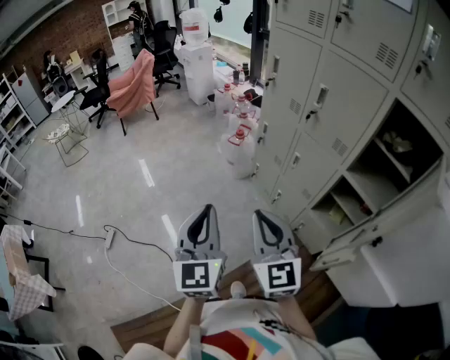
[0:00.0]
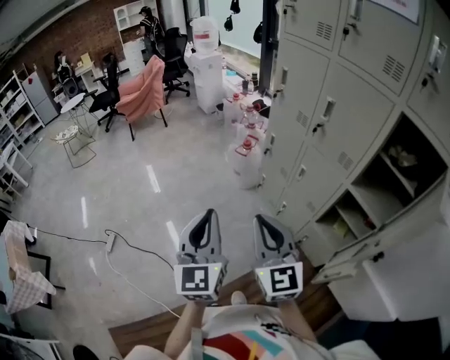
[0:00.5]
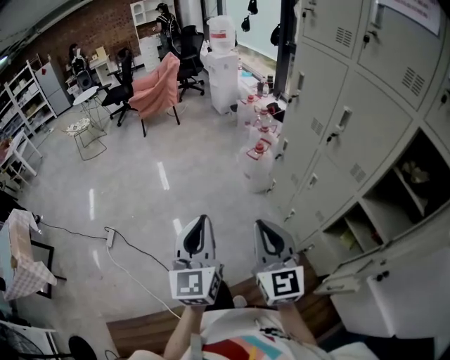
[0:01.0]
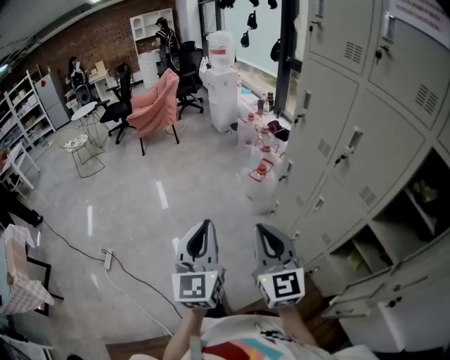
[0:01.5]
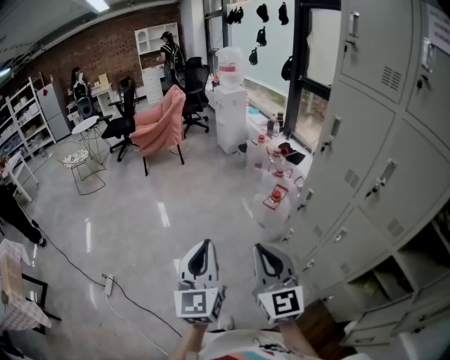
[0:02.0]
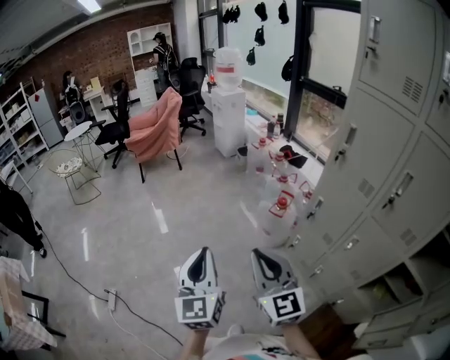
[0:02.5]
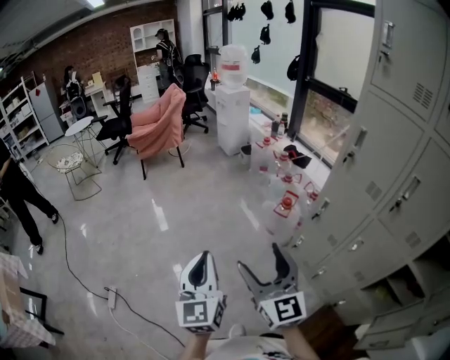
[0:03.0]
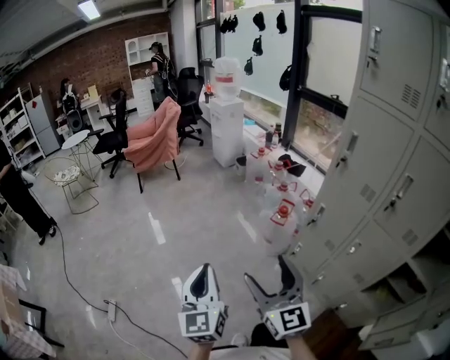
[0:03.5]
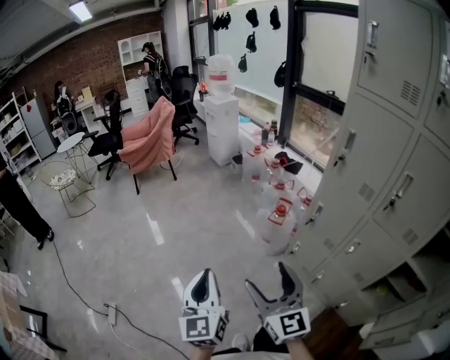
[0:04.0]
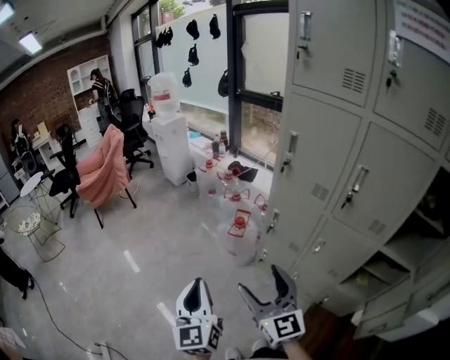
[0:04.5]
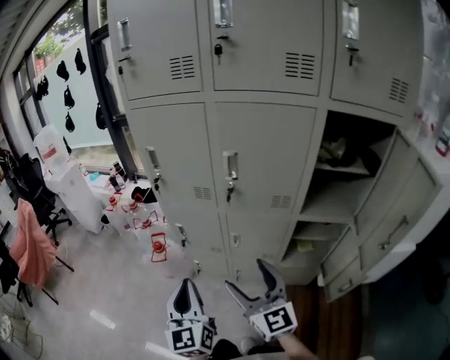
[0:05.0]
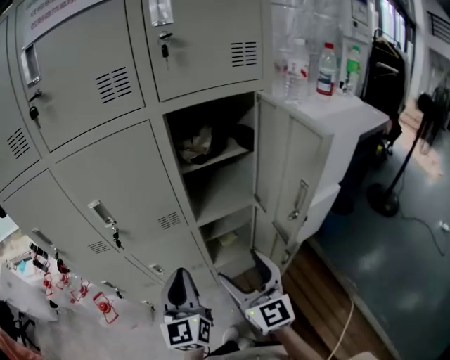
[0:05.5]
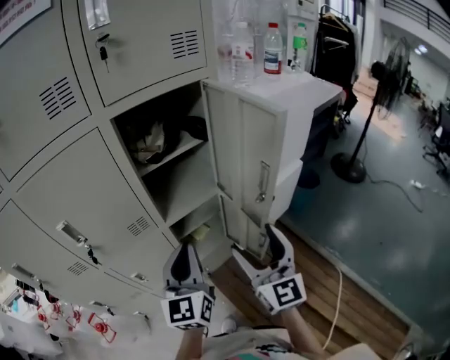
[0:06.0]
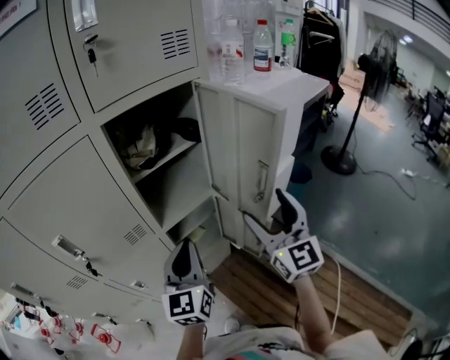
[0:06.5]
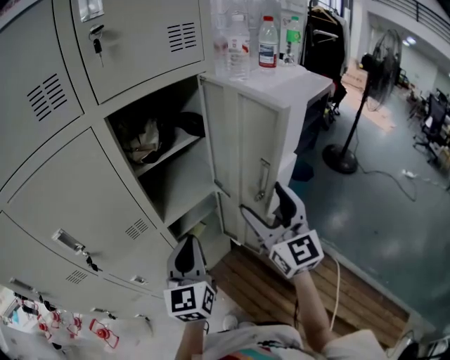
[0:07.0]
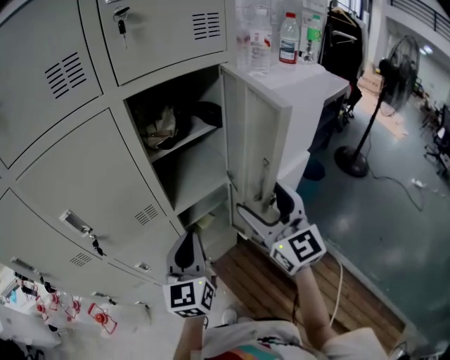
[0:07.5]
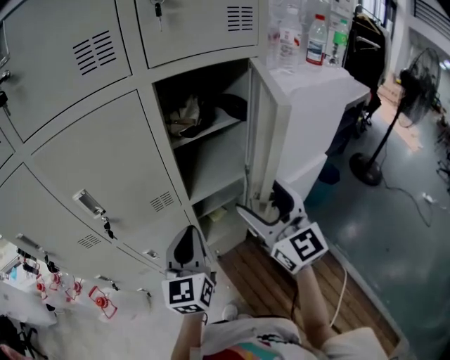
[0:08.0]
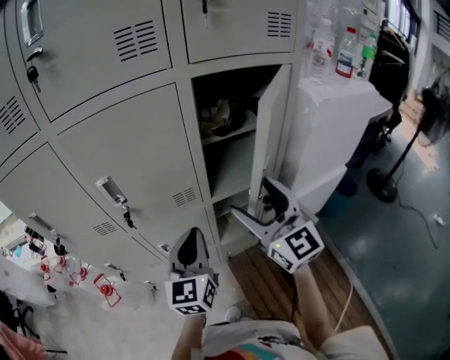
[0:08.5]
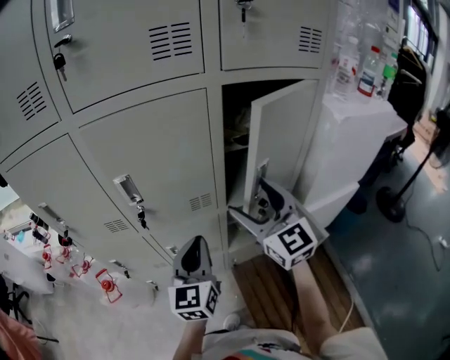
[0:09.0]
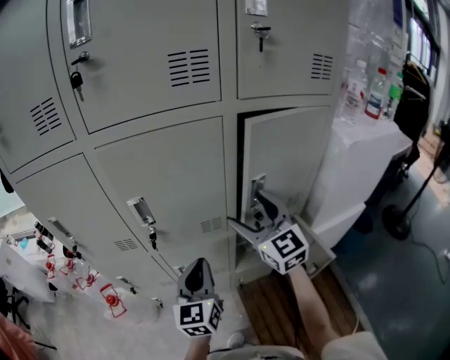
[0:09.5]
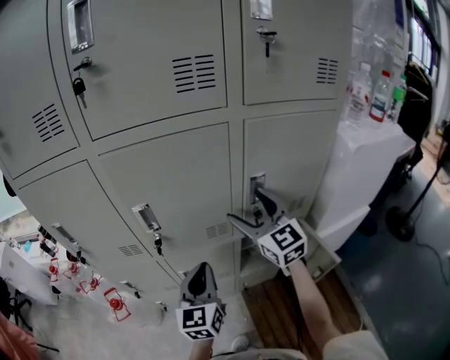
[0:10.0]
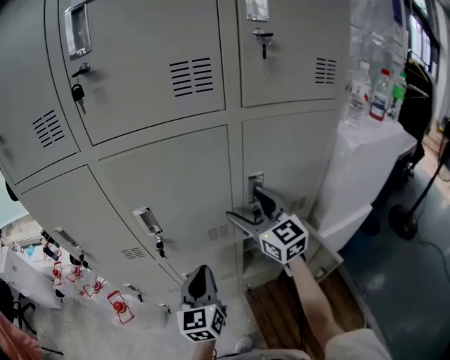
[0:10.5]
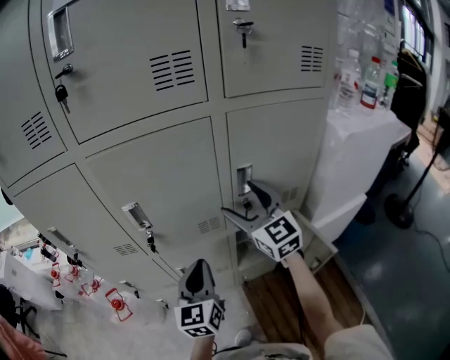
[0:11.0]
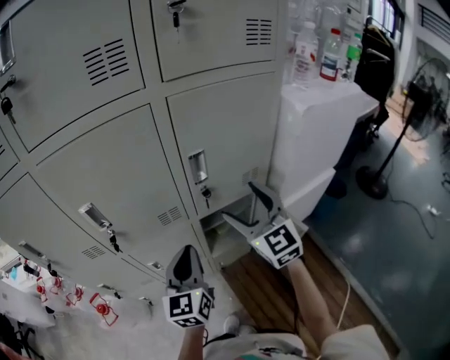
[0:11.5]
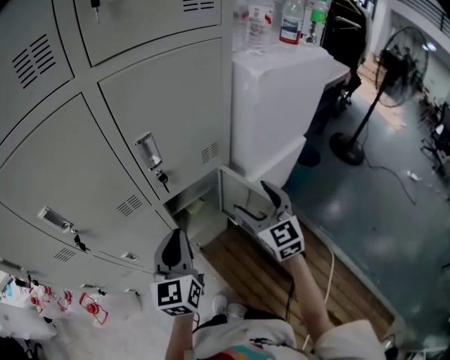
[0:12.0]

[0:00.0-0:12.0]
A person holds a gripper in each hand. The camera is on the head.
0:00.0 to 0:02.0: The two grippers go roughly 25 cm forward and to the left.
0:02.0 to 0:04.0: The right gripper heads forward and to the left, covering roughly 10 cm, and opens its fingers. Meanwhile the left gripper is displaced forward, to the left and downward by roughly 10 cm.
0:04.0 to 0:06.0: The two grippers travel together, roughly 60 cm. The right gripper turns by roughly 90 degrees. The left gripper changes its angle by approximately 100 degrees.
0:06.0 to 0:08.0: The right gripper is displaced forward, to the left and upward by some 10 cm; the left gripper shifts approximately 5 cm to the left.
0:08.0 to 0:10.0: The left gripper heads to the left, covering roughly 10 cm; the right gripper is displaced forward and to the left by some 20 cm.
0:10.0 to 0:12.0: The left gripper is displaced to the right by approximately 15 cm. The right gripper heads to the right, backward and downward, covering roughly 30 cm, and changes its angle by about 30 degrees.

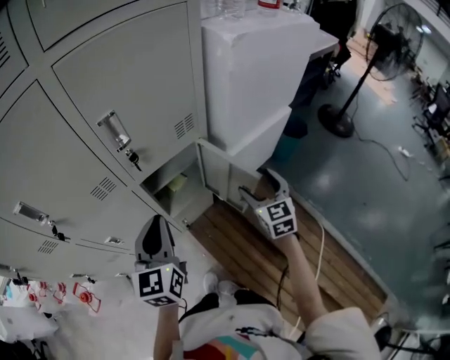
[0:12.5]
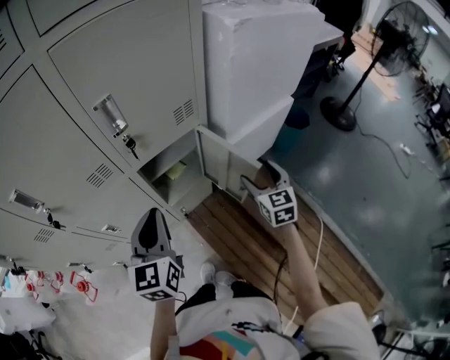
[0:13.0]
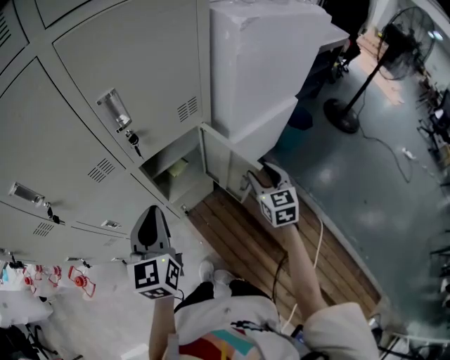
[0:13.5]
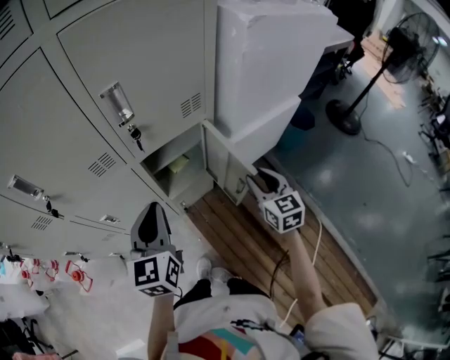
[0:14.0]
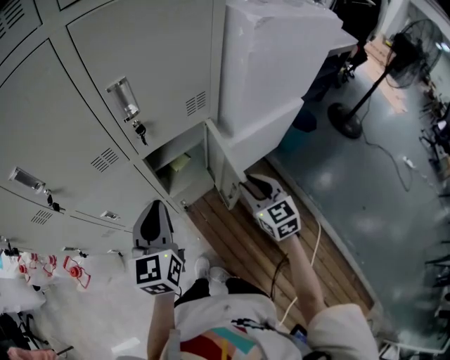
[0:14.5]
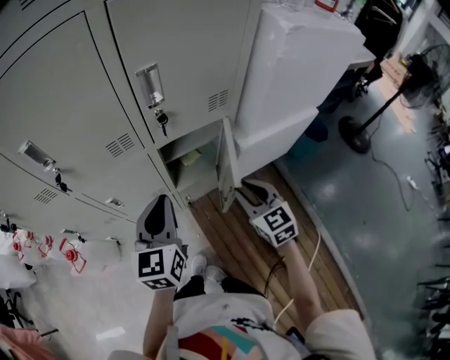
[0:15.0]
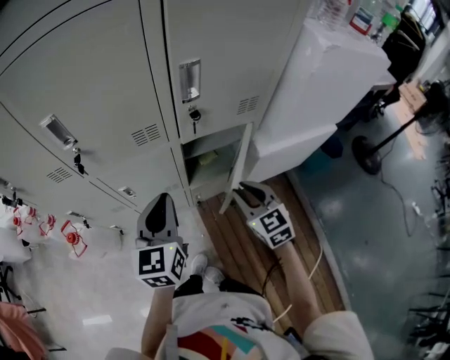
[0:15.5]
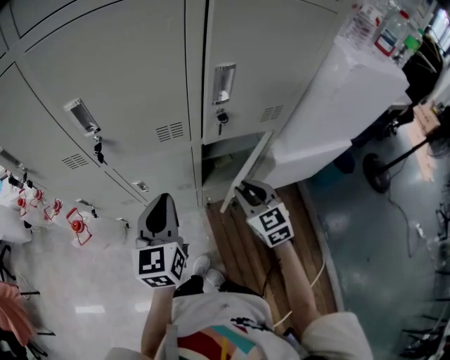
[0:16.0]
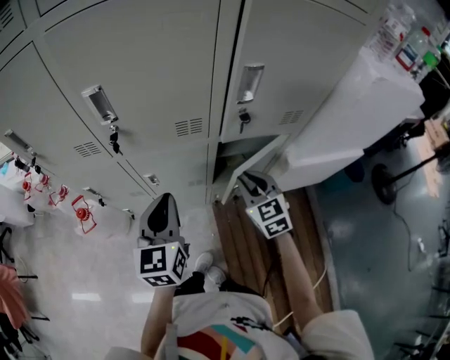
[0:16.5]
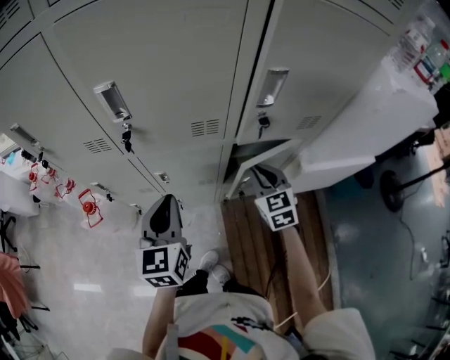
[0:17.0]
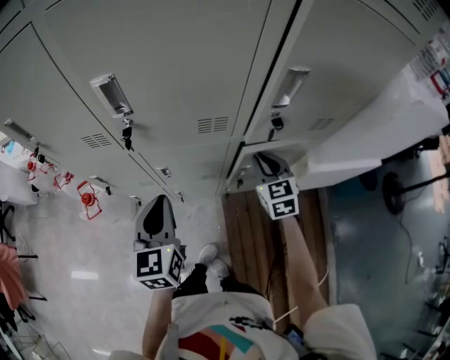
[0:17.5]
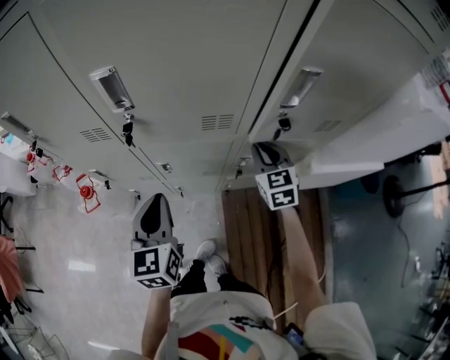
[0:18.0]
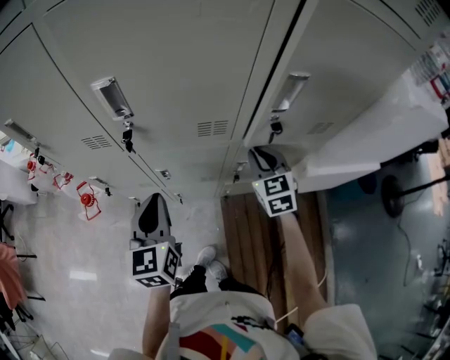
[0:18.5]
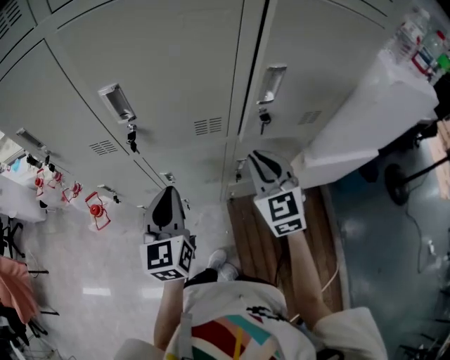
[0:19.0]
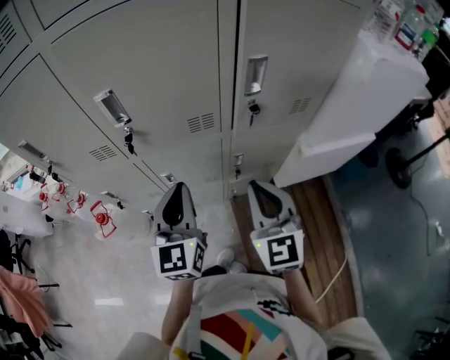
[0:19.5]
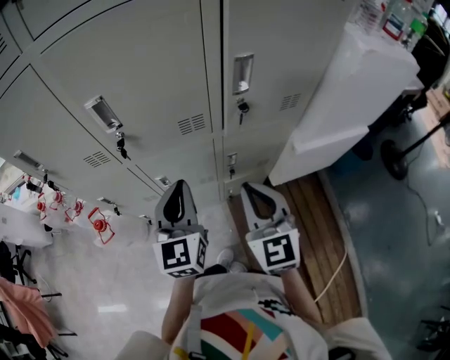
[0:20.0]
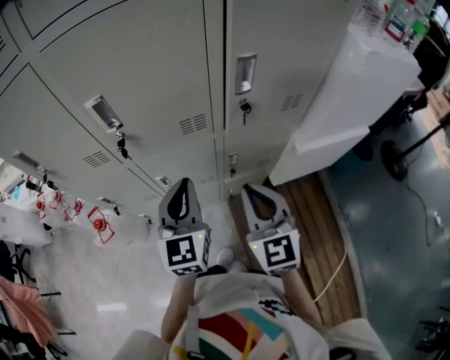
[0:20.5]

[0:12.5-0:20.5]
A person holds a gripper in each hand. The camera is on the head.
0:12.5 to 0:14.5: The right gripper goes approximately 5 cm to the left, and closes.
0:14.5 to 0:16.5: The left gripper goes some 15 cm to the left; the right gripper is displaced to the left and forward by approximately 20 cm, and turns by about 20 degrees.
0:16.5 to 0:18.5: The left gripper is displaced to the left by approximately 5 cm. Meanwhile the right gripper travels forward by about 10 cm.
0:18.5 to 0:20.5: The right gripper travels backward and upward by roughly 20 cm; the left gripper heads to the right and upward, covering some 10 cm.

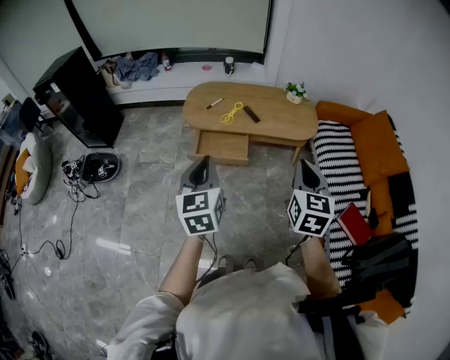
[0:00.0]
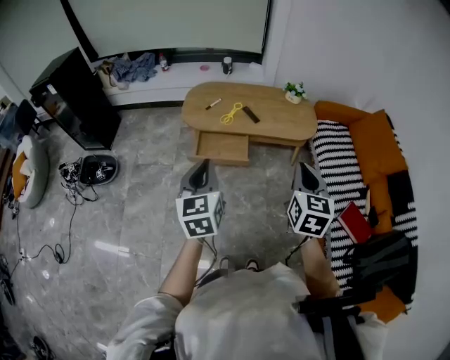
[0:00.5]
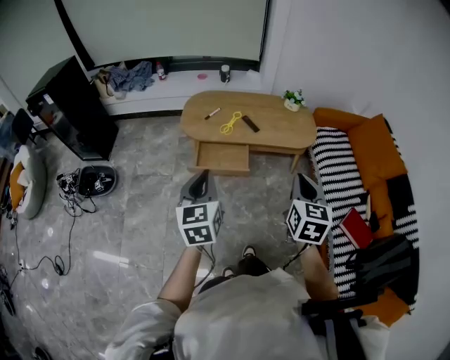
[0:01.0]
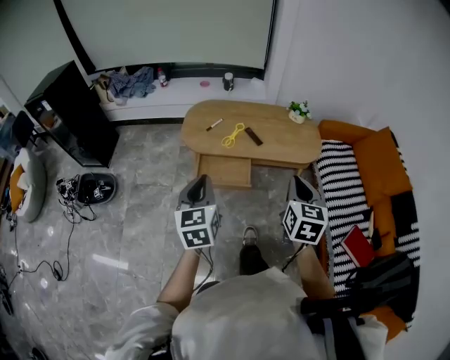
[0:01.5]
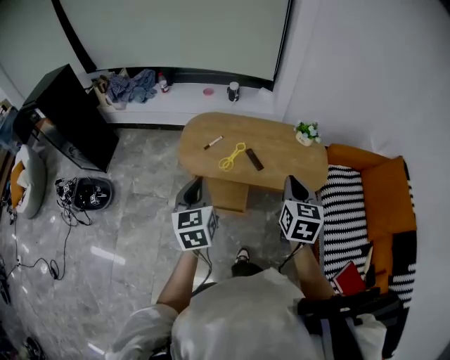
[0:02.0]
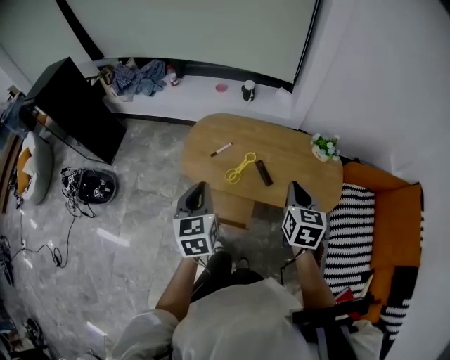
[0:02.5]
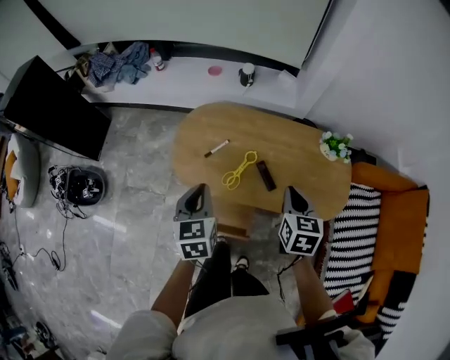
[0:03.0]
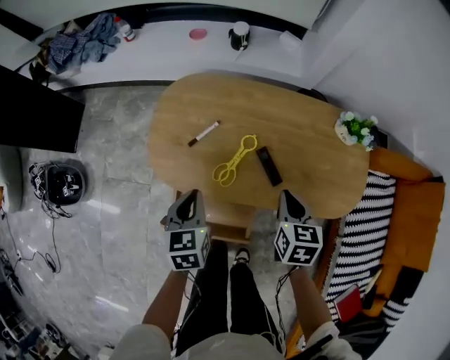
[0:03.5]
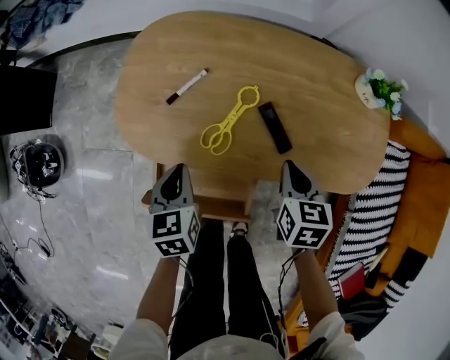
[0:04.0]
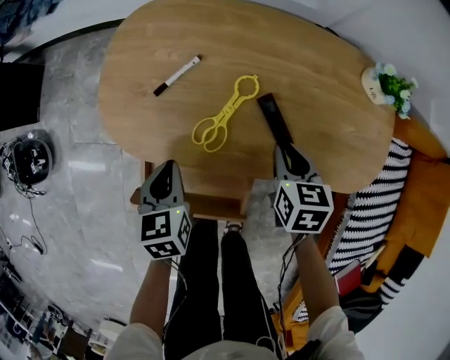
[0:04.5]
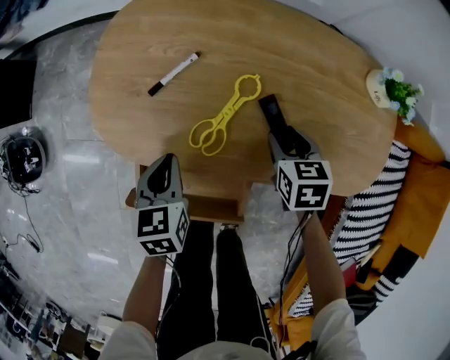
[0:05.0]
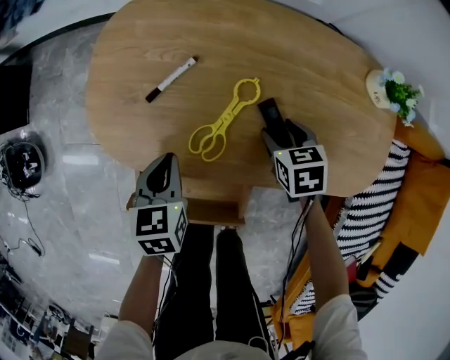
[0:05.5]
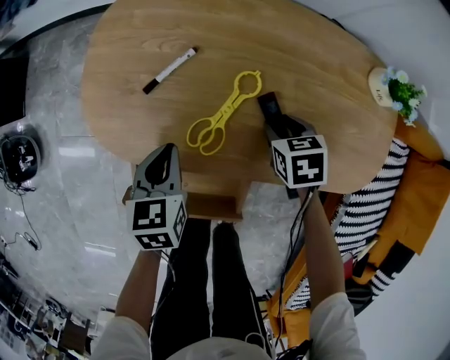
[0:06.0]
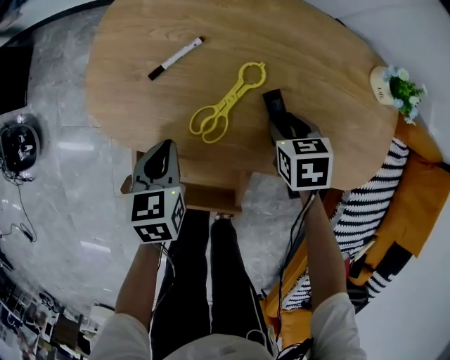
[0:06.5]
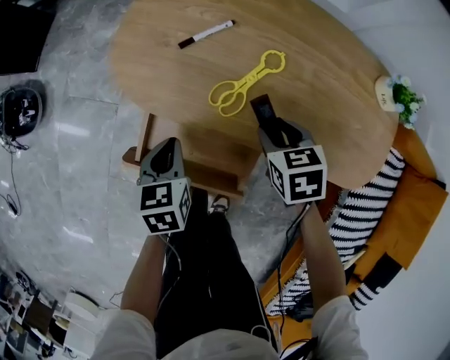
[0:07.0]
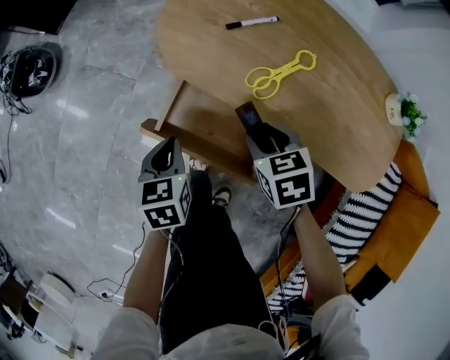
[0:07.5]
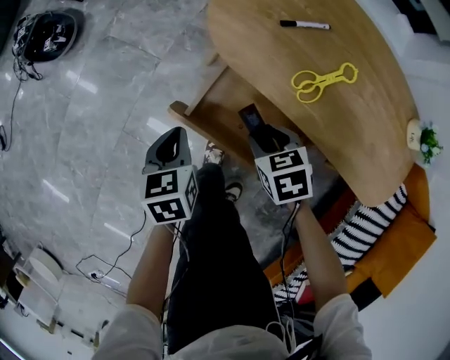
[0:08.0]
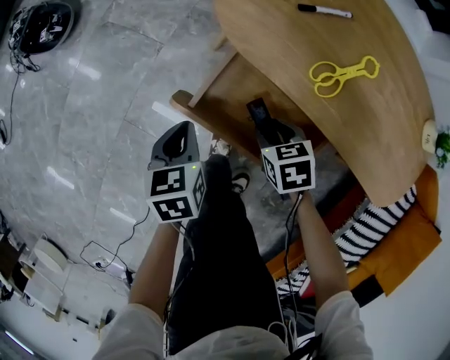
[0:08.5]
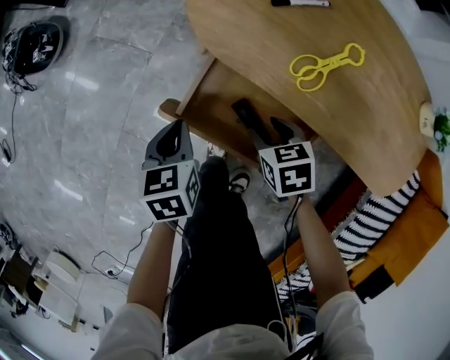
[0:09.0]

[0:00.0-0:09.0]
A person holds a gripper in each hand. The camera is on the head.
0:00.0 to 0:02.0: Both grippers move forward, roughly 30 cm.
0:02.0 to 0:04.5: The grippers both shift downward and forward by approximately 60 cm. The left gripper swivels some 30 degrees. The right gripper changes its angle by some 30 degrees.
0:04.5 to 0:07.0: The left gripper heads backward, covering about 5 cm; the right gripper shifts about 5 cm to the left, travels downward and back again, some 10 cm each way, turns by approximately 30 degrees, and opens up.
0:07.0 to 0:09.0: The right gripper moves roughly 20 cm. The left gripper shifts by approximately 15 cm.
